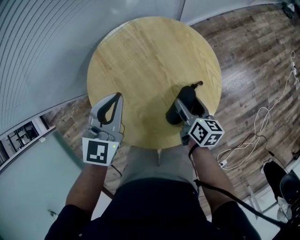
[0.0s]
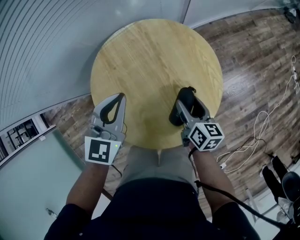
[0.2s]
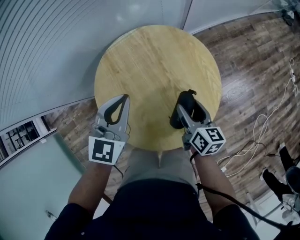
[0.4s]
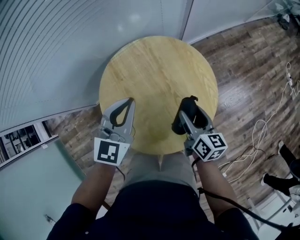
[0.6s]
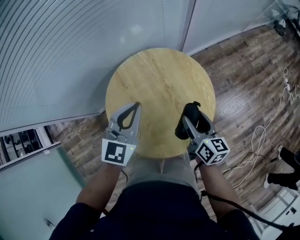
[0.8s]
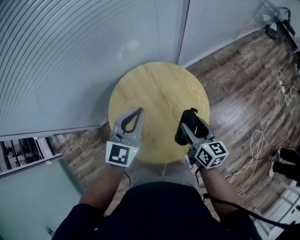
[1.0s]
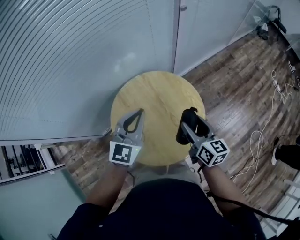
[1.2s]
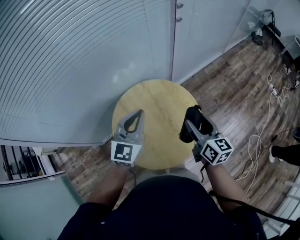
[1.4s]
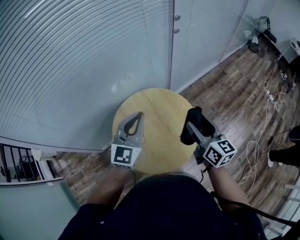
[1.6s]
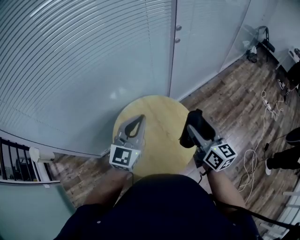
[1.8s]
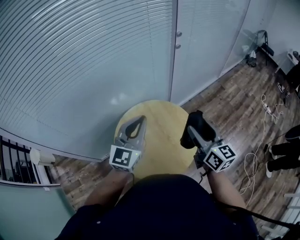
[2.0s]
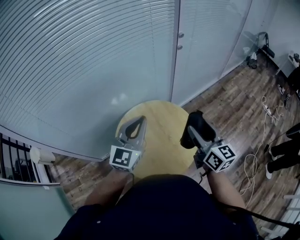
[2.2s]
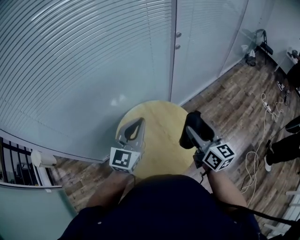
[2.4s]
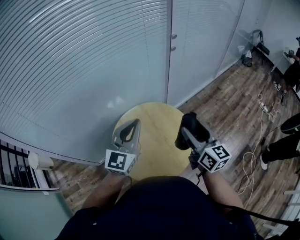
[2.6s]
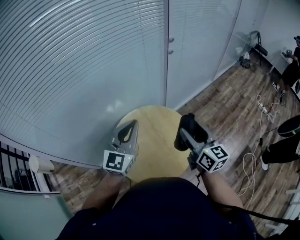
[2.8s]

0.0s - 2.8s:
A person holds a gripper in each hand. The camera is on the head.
0.0s - 1.4s: The right gripper moves upward, about 30 cm, and turns by about 30 degrees. The left gripper shifts about 20 cm upward.
1.4s - 2.8s: The grippers both shift upward by some 10 cm.

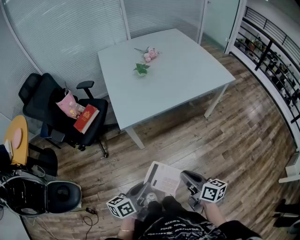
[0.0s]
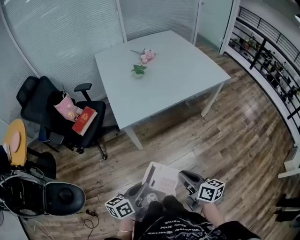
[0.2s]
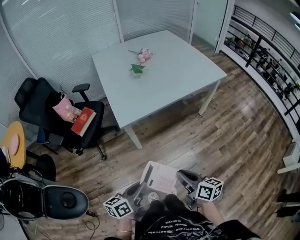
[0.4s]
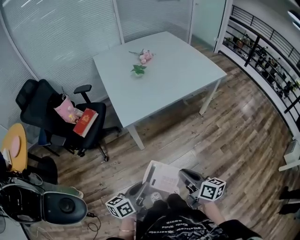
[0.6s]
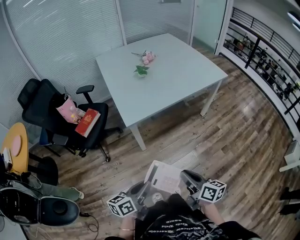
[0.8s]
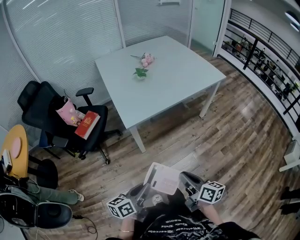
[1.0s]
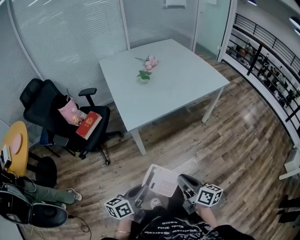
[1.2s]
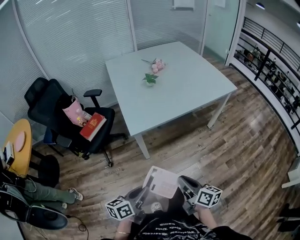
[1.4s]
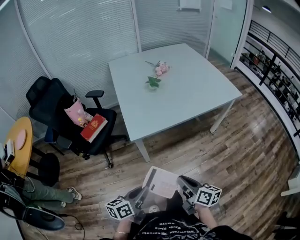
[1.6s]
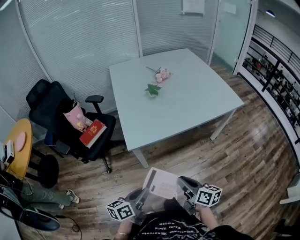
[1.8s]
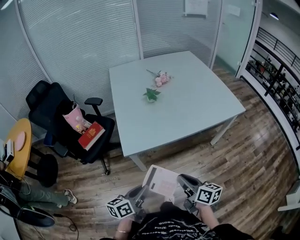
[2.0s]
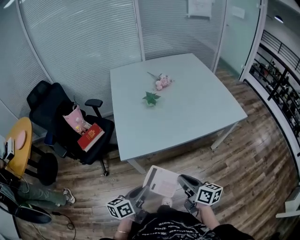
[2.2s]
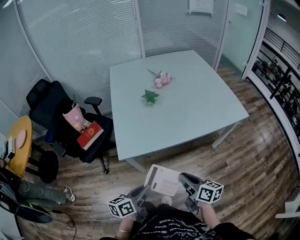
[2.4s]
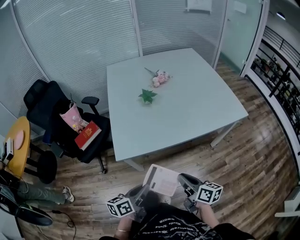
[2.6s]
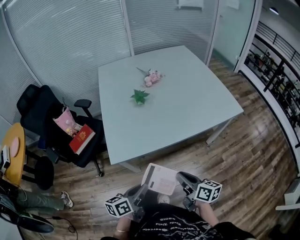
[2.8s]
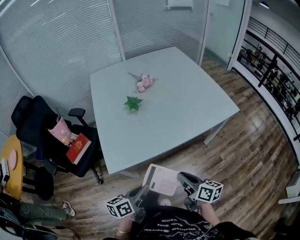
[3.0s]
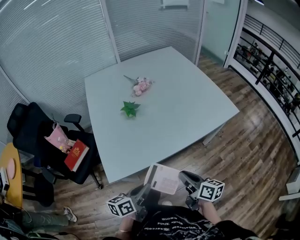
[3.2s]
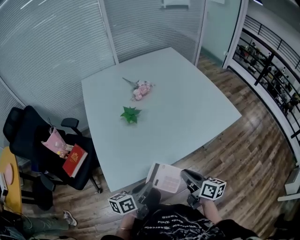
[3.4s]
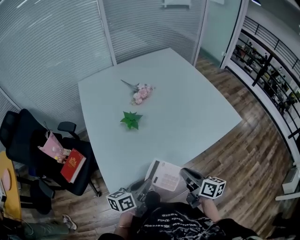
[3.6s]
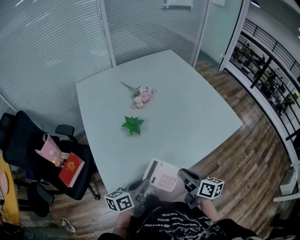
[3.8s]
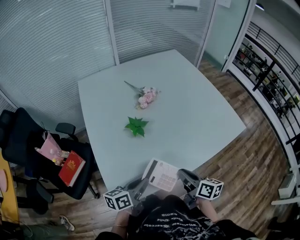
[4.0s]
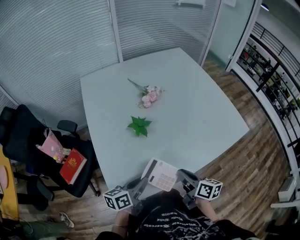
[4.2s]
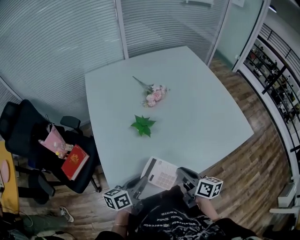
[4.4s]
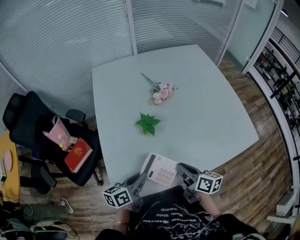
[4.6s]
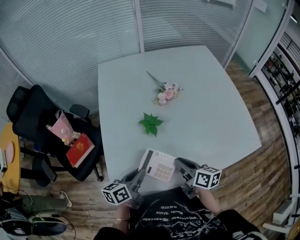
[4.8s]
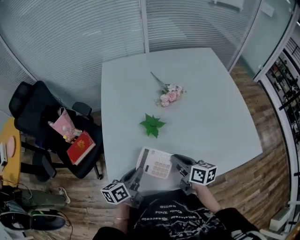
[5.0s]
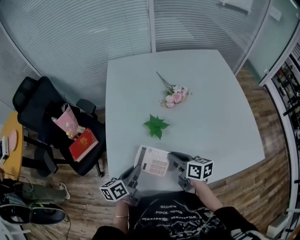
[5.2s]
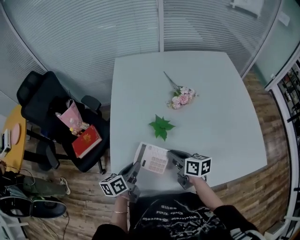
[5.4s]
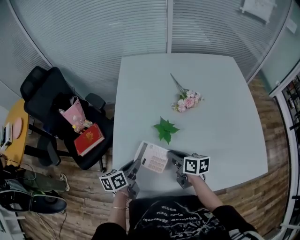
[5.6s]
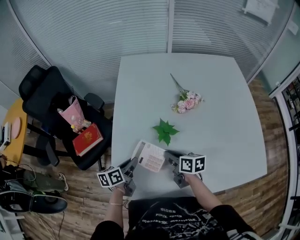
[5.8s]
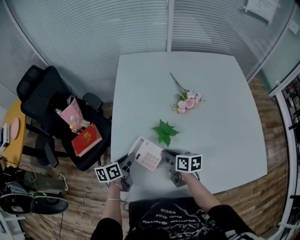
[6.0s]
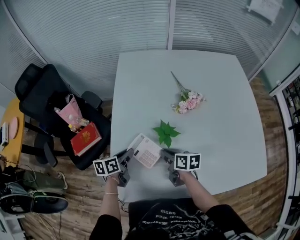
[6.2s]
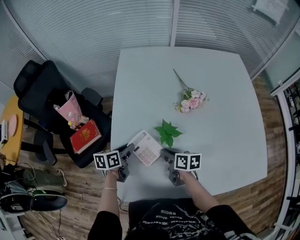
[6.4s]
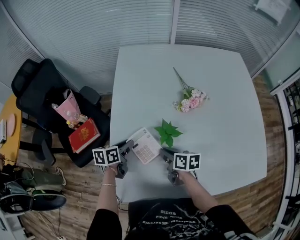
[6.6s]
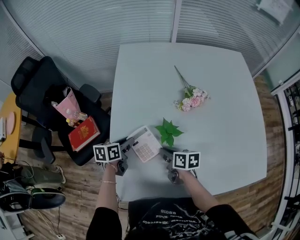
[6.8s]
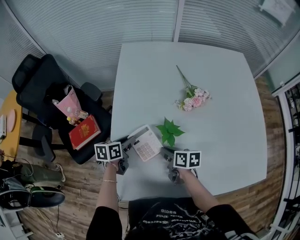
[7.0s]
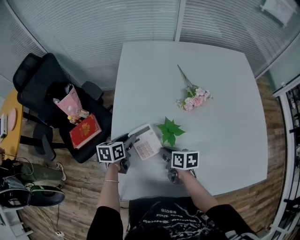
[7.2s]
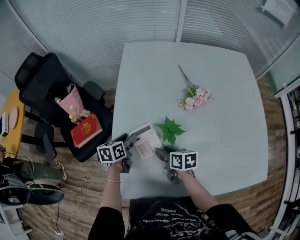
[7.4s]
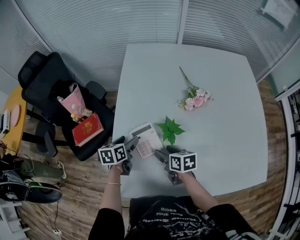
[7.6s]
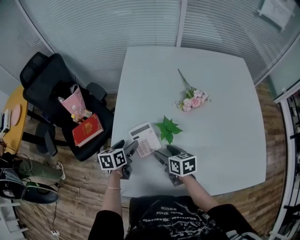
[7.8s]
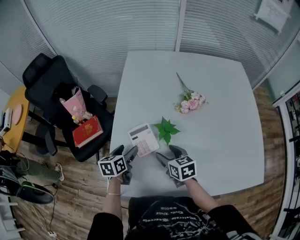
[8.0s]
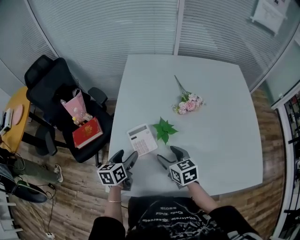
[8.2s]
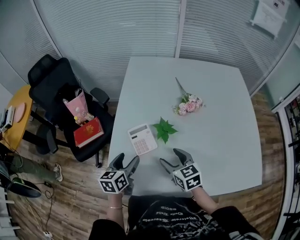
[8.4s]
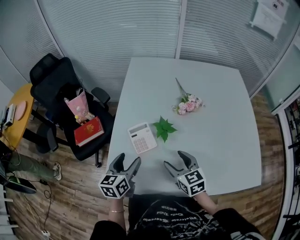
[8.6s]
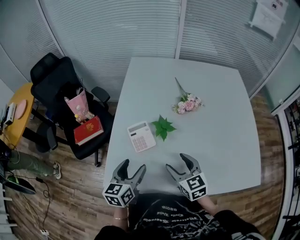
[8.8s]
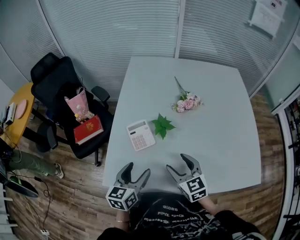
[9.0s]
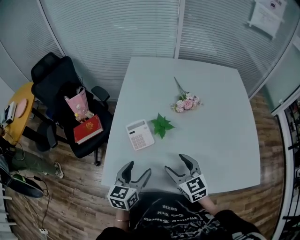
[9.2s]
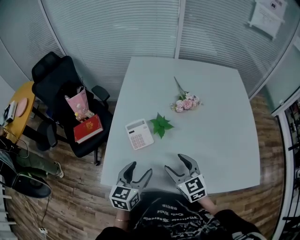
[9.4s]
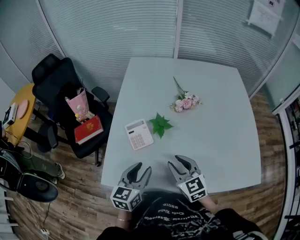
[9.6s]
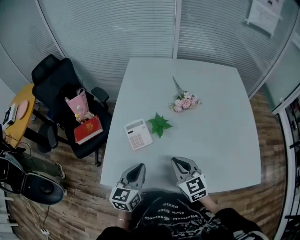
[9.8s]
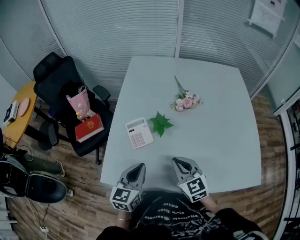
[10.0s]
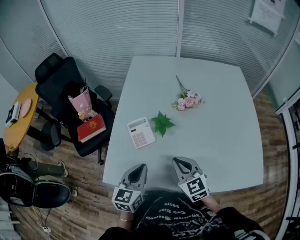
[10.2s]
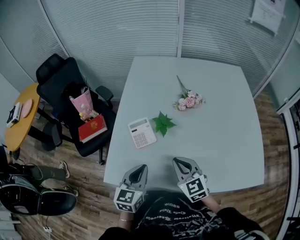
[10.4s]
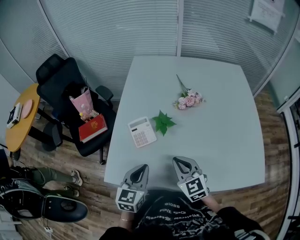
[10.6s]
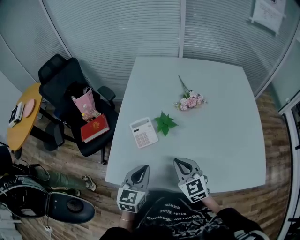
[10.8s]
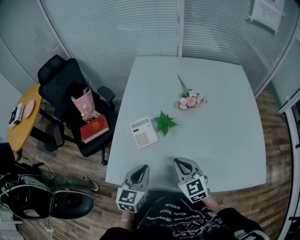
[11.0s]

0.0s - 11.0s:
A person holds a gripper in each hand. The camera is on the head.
0.0s - 1.6s: Both grippers travel together to the left, about 5 cm. The left gripper goes backward and returns, some 5 cm each way. The right gripper reaches about 5 cm backward, then returns.
1.6s - 3.2s: Both grippers travel together forward and to the right, some 30 cm.
3.2s - 4.8s: The grippers both shift forward and to the left by about 25 cm.
4.8s - 6.2s: The right gripper is displaced forward, downward and to the left by approximately 20 cm, and changes its angle by approximately 20 degrees. The left gripper is displaced forward, to the left and downward by roughly 20 cm.
6.2s - 7.8s: The right gripper opens up, while the left gripper opens its fingers.
7.8s - 9.4s: Both grippers move backward, upward and to the right, roughly 20 cm. The left gripper swivels some 30 degrees. Meanwhile the right gripper changes its angle by roughly 40 degrees.
9.4s - 11.0s: The right gripper closes up. The left gripper closes its fingers.

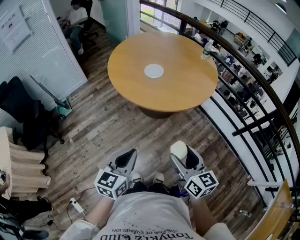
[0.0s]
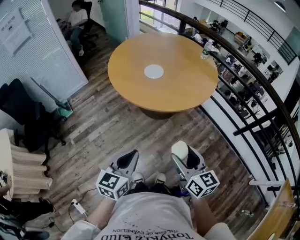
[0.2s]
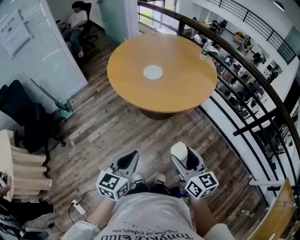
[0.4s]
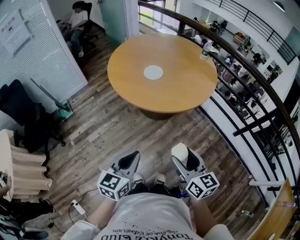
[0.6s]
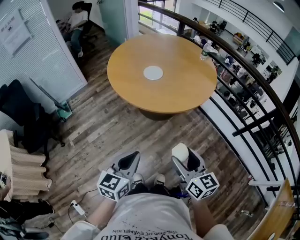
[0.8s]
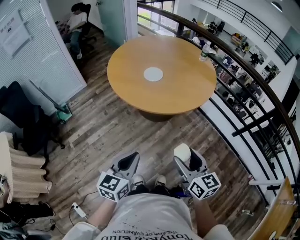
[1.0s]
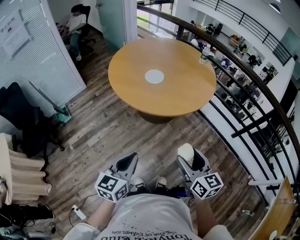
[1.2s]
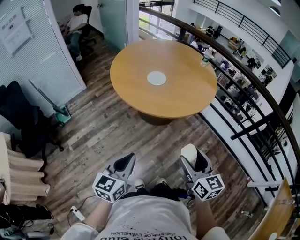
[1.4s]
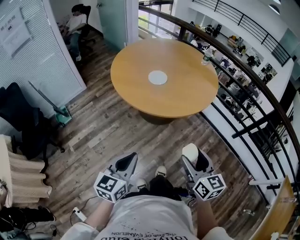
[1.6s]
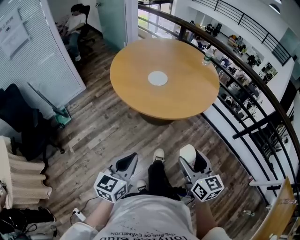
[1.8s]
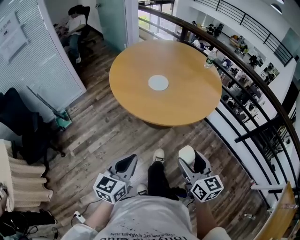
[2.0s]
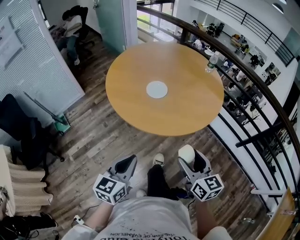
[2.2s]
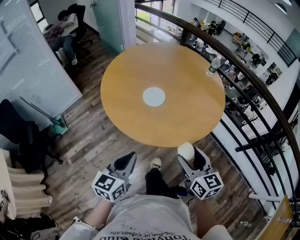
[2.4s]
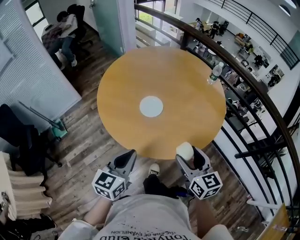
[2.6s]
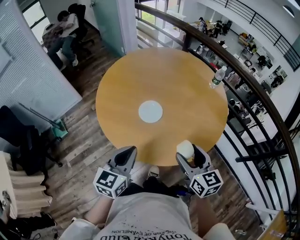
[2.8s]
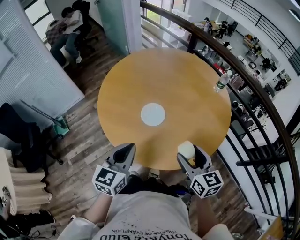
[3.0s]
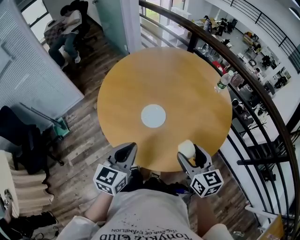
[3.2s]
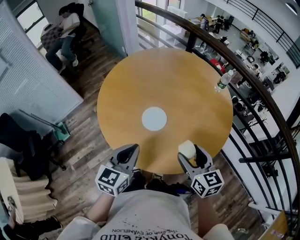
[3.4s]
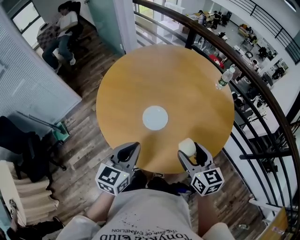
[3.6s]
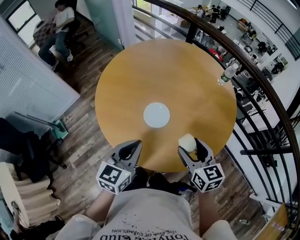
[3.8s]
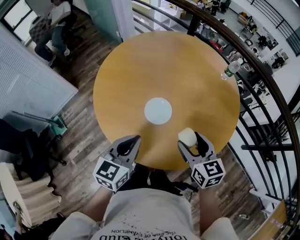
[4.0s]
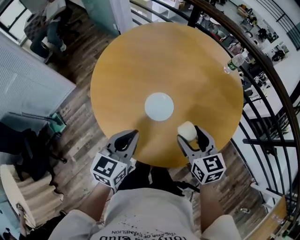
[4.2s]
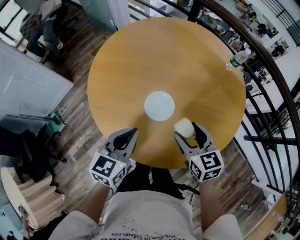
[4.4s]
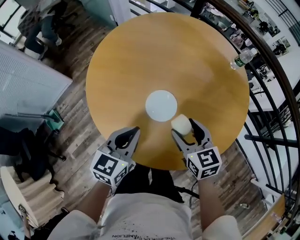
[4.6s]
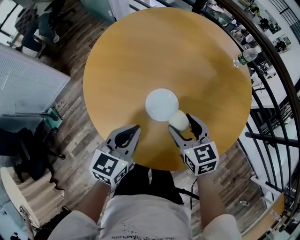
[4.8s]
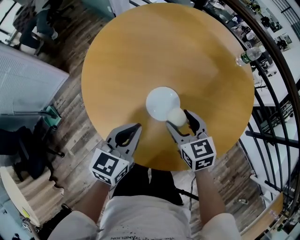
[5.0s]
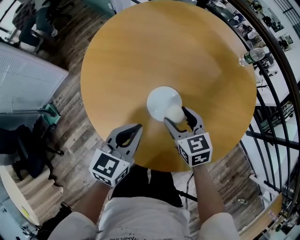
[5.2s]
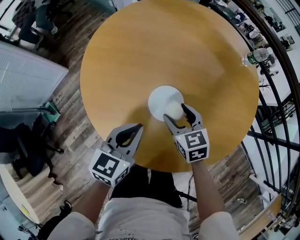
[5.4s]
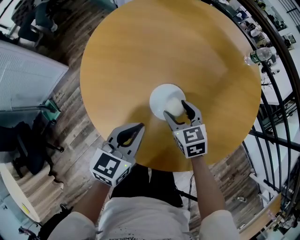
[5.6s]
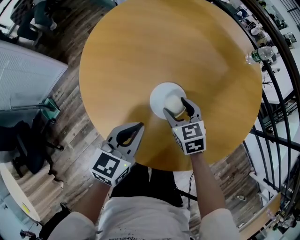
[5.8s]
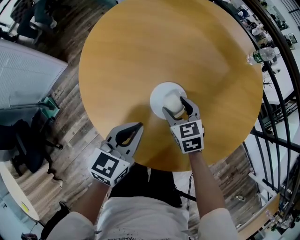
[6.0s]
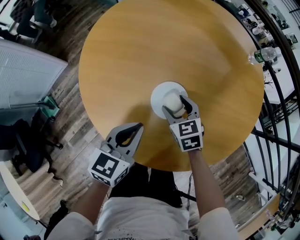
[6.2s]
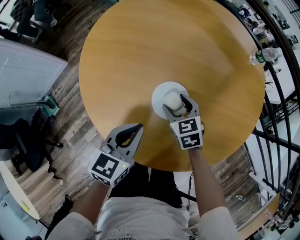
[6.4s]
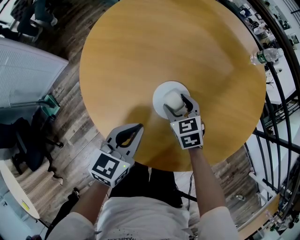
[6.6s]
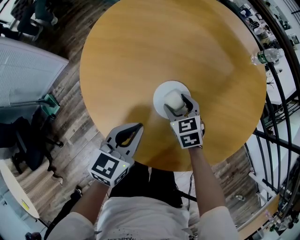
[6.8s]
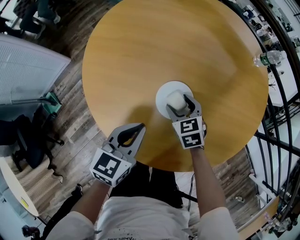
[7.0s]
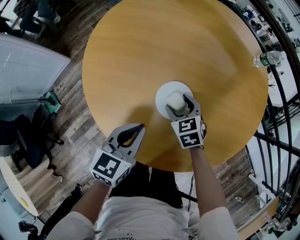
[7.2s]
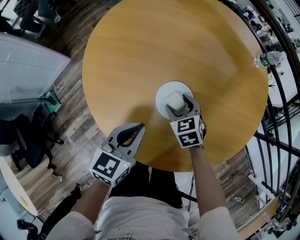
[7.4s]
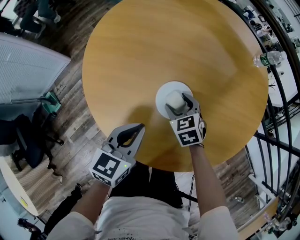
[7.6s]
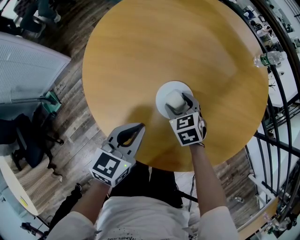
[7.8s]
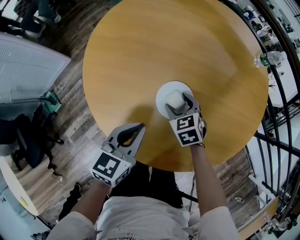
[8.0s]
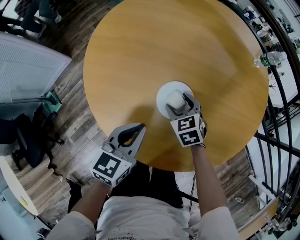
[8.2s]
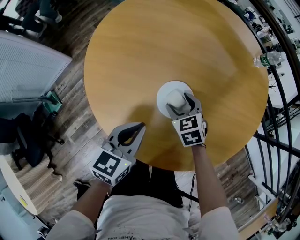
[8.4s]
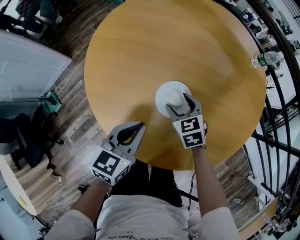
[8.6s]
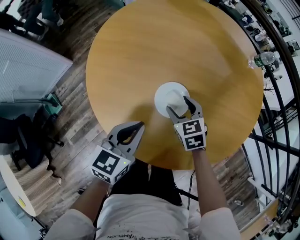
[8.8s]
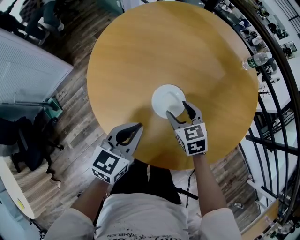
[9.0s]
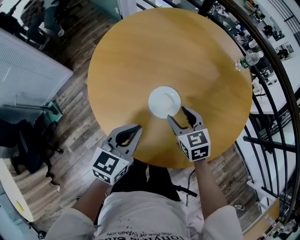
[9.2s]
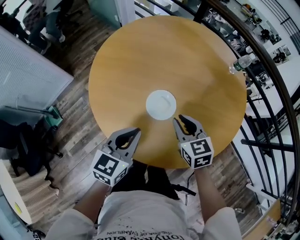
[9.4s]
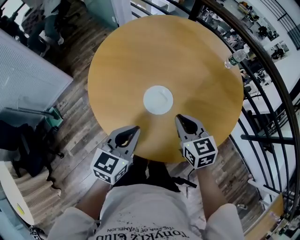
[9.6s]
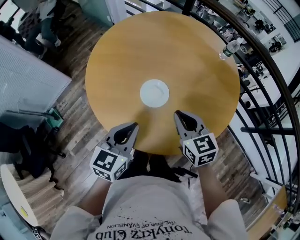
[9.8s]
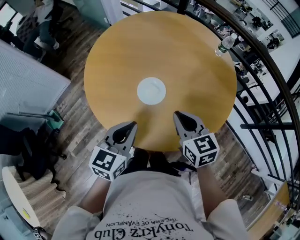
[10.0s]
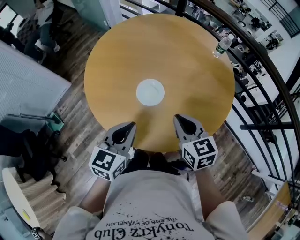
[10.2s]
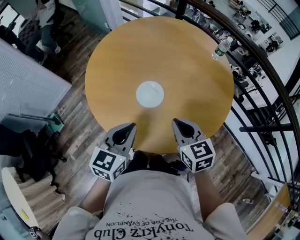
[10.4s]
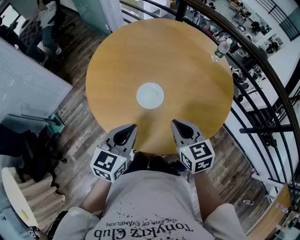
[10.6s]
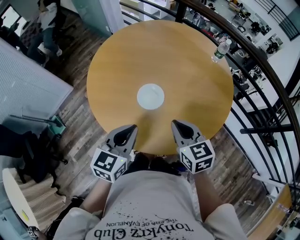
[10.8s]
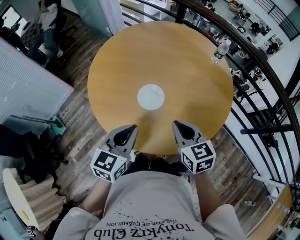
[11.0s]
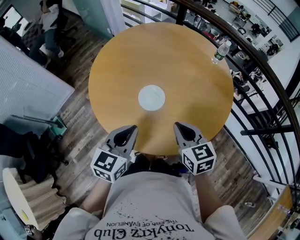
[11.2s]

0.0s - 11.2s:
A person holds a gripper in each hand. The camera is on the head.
0.0s - 1.6s: The left gripper is displaced to the left by about 5 cm.
1.6s - 3.2s: Both grippers are carried forward, some 40 cm.
3.2s - 4.8s: The left gripper travels forward, downward and to the left by some 20 cm. Meanwhile the right gripper travels forward, to the left and downward by about 20 cm.
4.8s - 6.4s: The left gripper travels downward by approximately 5 cm; the right gripper travels downward and forward by approximately 15 cm.
6.4s - 8.0s: The grippers make only small movements.
8.0s - 9.6s: The right gripper travels upward and backward by some 20 cm, changes its angle by approximately 30 degrees, and closes up, while the left gripper goes about 10 cm upward and backward.
9.6s - 11.2s: The left gripper changes place by roughly 5 cm. Meanwhile the right gripper is displaced backward by roughly 10 cm.
